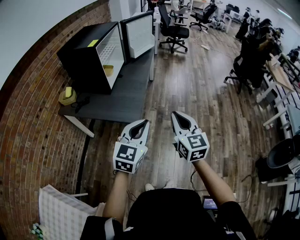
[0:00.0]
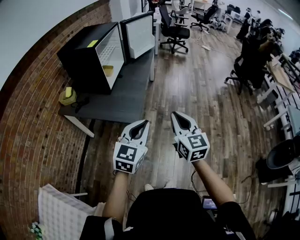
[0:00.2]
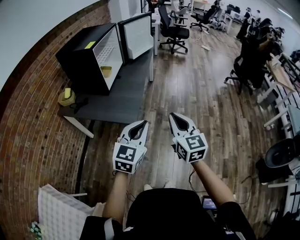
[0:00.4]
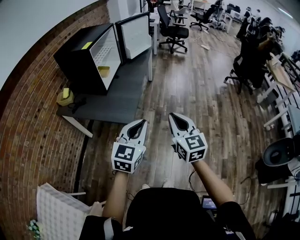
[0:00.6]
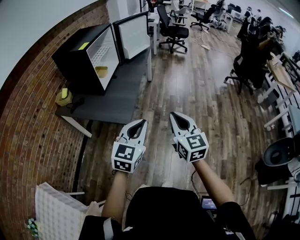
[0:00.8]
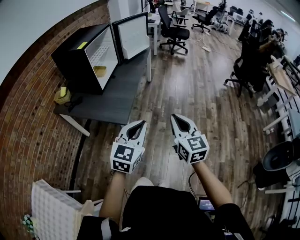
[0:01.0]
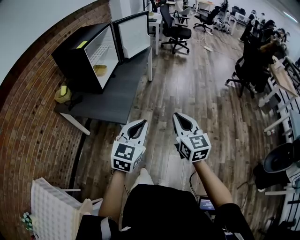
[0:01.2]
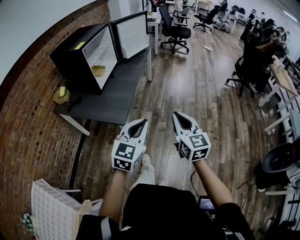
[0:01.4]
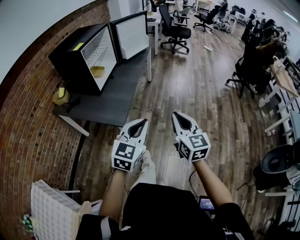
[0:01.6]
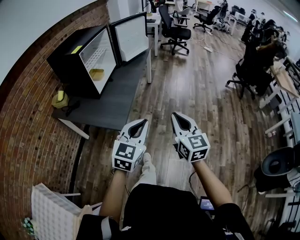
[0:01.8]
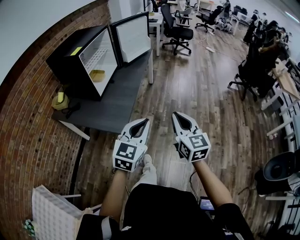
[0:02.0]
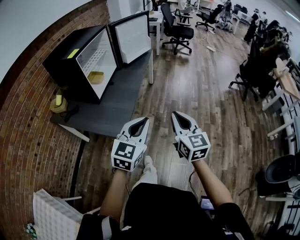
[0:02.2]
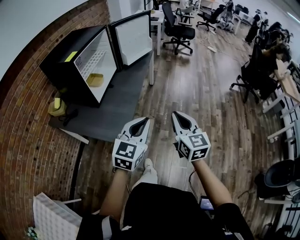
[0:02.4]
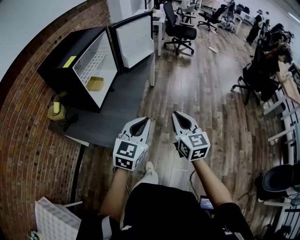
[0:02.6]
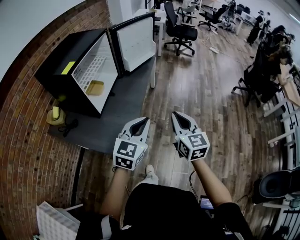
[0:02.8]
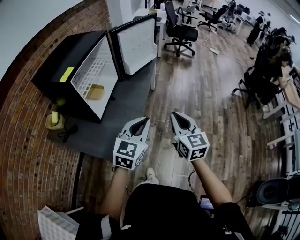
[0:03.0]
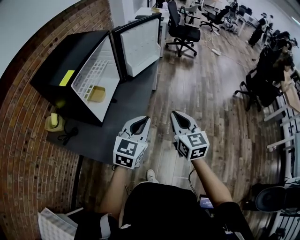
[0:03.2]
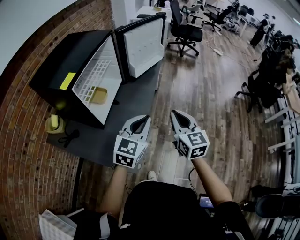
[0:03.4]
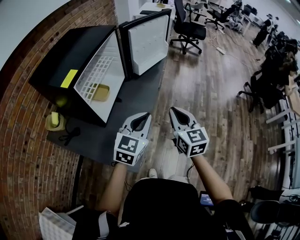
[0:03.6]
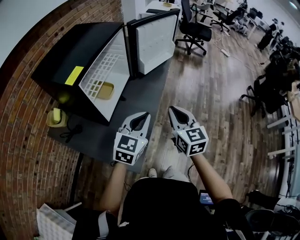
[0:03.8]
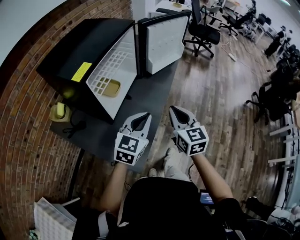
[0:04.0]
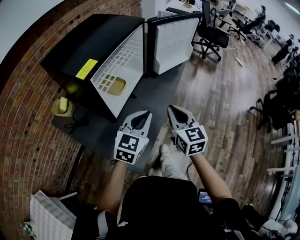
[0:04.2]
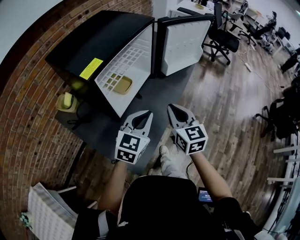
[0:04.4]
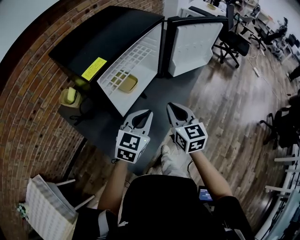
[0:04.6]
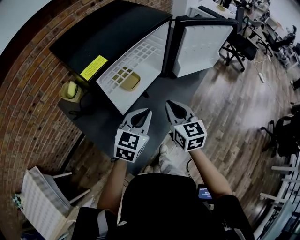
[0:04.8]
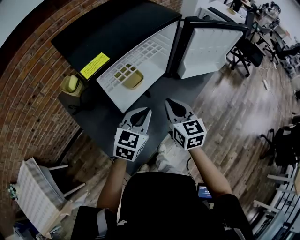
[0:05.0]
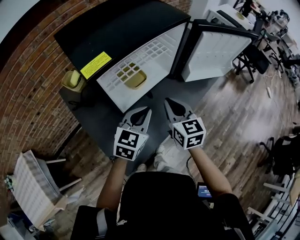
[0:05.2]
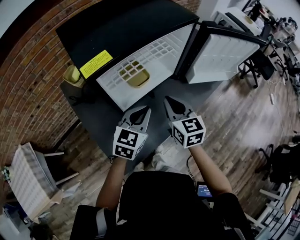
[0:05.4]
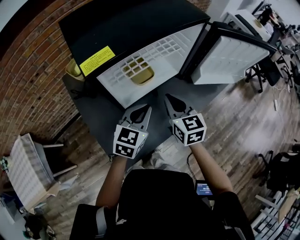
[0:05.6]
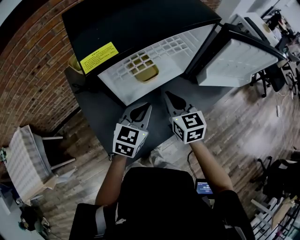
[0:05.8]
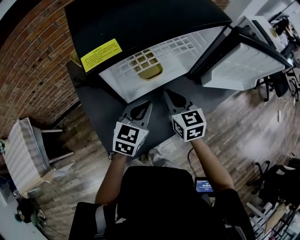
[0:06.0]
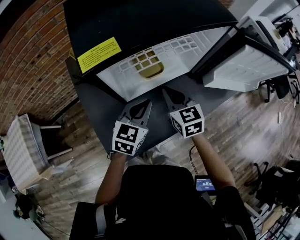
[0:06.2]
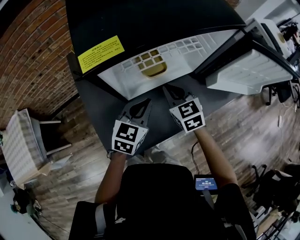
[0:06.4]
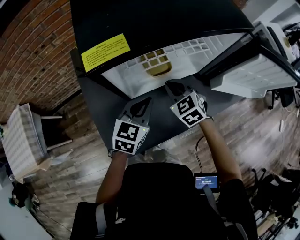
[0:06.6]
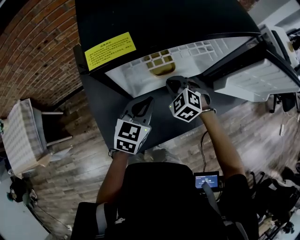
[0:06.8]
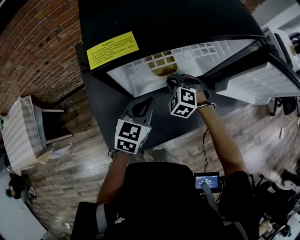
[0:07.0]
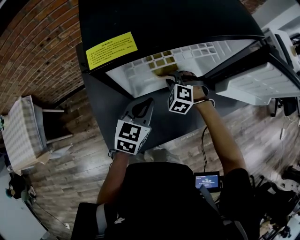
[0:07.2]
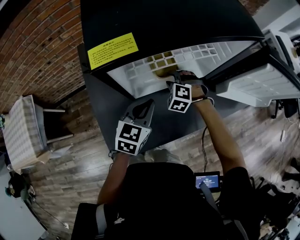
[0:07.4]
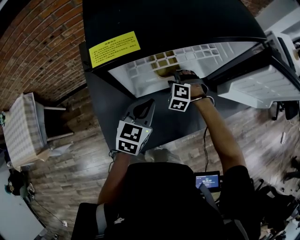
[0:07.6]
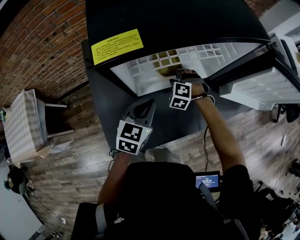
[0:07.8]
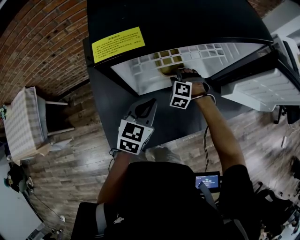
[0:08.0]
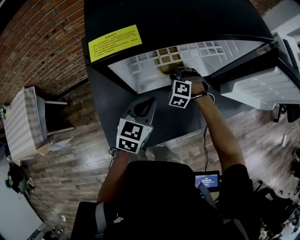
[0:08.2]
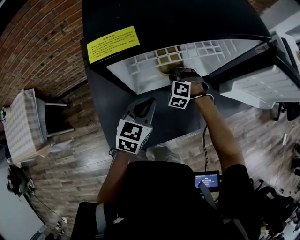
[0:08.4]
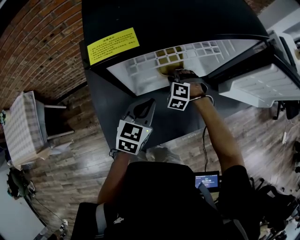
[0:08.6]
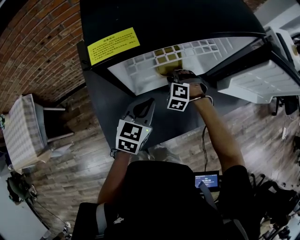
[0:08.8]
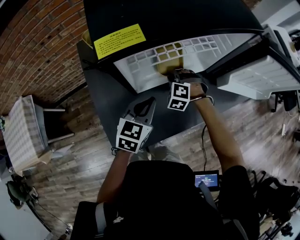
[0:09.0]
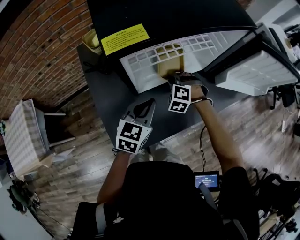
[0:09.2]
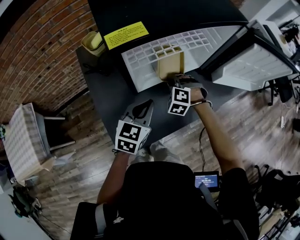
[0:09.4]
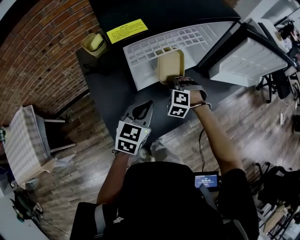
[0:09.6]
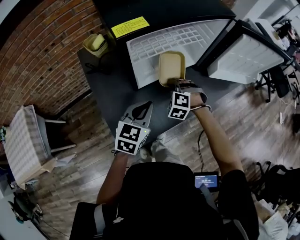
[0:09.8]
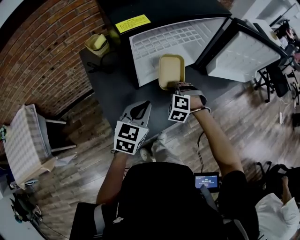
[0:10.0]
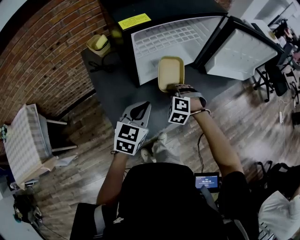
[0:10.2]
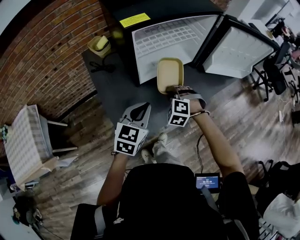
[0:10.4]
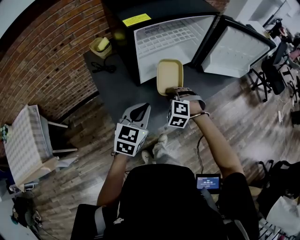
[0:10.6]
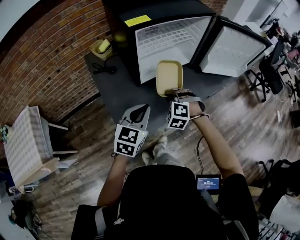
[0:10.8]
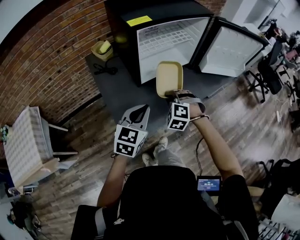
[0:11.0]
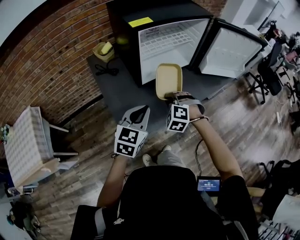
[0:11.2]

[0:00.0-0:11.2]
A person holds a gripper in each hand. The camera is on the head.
0:00.0 to 0:01.6: The grippers both shift to the right by about 15 cm.
0:01.6 to 0:03.2: The two grippers go approximately 35 cm forward.
0:03.2 to 0:04.8: The left gripper shifts by roughly 25 cm, and changes its angle by approximately 30 degrees. The right gripper moves some 30 cm, and changes its angle by approximately 30 degrees.
0:04.8 to 0:06.4: The left gripper changes place by about 15 cm, and changes its angle by about 30 degrees. Meanwhile the right gripper ends up approximately 20 cm from where it was, and swivels approximately 40 degrees.
0:06.4 to 0:08.0: The right gripper is displaced downward and forward by some 15 cm, rotates around the line of its fingers by roughly 60 degrees, counterclockwise from behind, and opens up.
0:08.0 to 0:09.6: The right gripper heads backward and upward, covering about 15 cm, and closes. The left gripper travels backward by roughly 10 cm.
0:09.6 to 0:11.2: Both grippers travel together backward, roughly 20 cm.

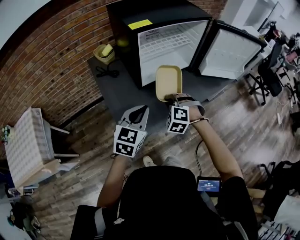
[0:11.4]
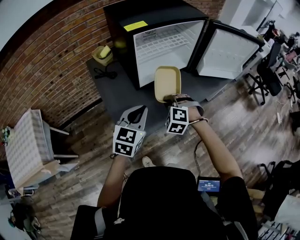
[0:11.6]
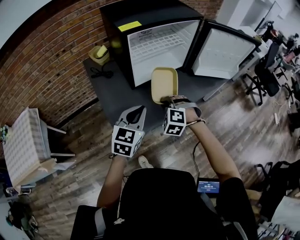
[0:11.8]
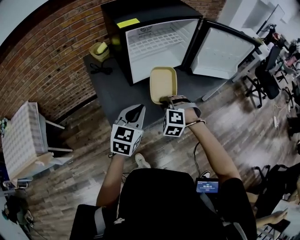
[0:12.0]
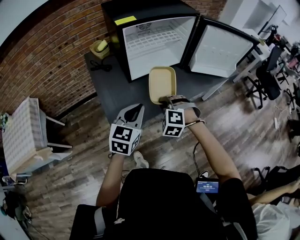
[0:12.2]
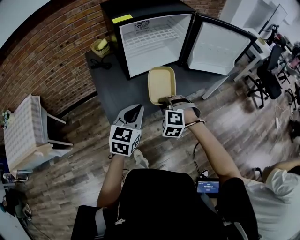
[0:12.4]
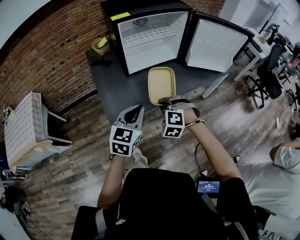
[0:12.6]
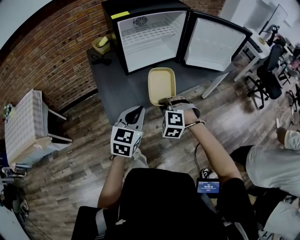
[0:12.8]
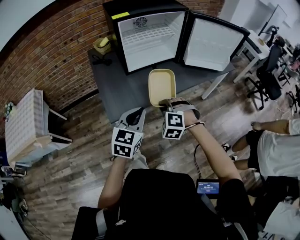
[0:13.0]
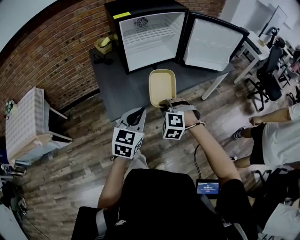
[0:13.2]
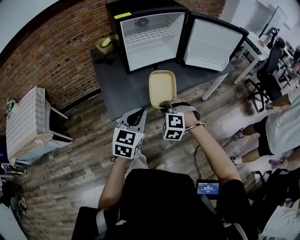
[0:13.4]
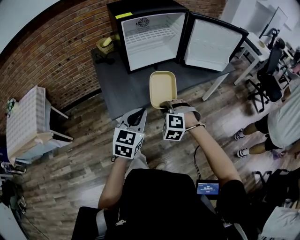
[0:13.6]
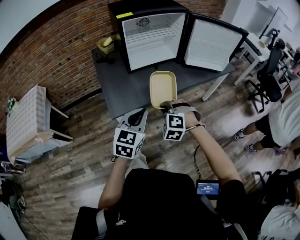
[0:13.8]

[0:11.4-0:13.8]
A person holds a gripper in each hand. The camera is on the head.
0:11.4 to 0:12.6: The right gripper heads backward and to the right, covering about 15 cm. Meanwhile the left gripper is displaced to the right and backward by some 15 cm.
0:12.6 to 0:13.8: The grippers both shift backward by roughly 10 cm.

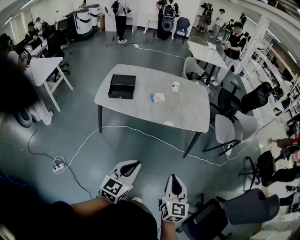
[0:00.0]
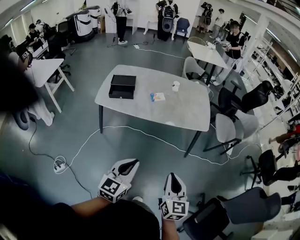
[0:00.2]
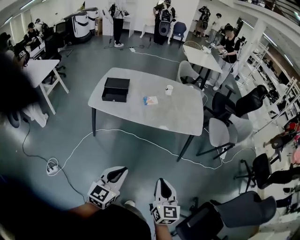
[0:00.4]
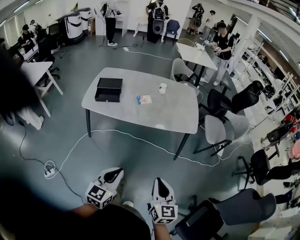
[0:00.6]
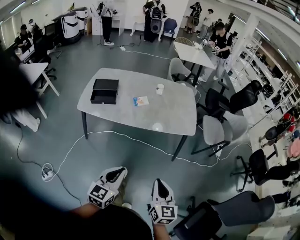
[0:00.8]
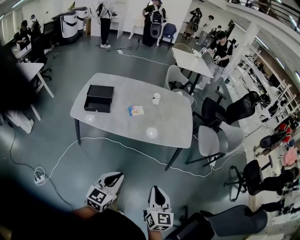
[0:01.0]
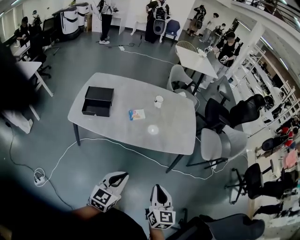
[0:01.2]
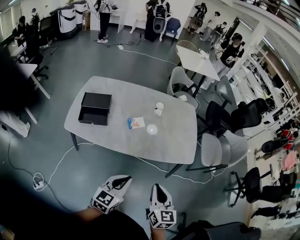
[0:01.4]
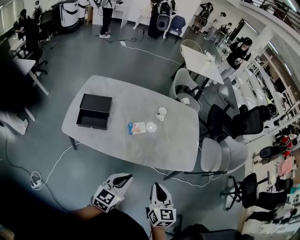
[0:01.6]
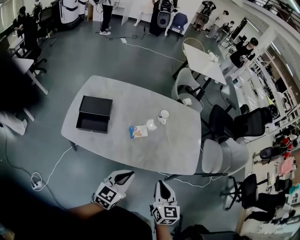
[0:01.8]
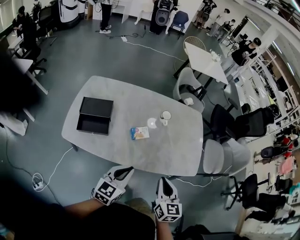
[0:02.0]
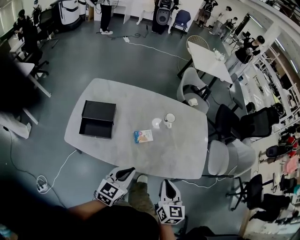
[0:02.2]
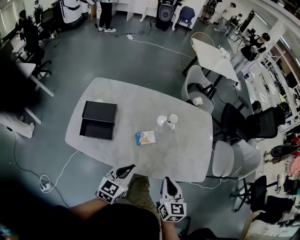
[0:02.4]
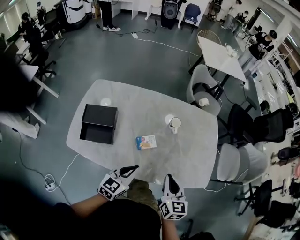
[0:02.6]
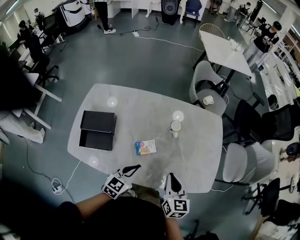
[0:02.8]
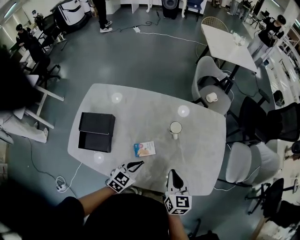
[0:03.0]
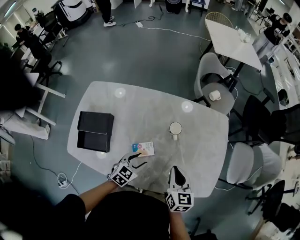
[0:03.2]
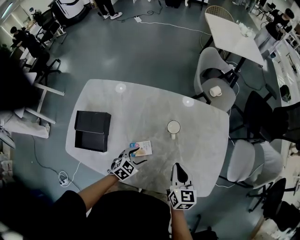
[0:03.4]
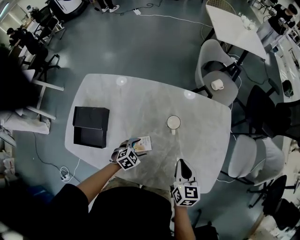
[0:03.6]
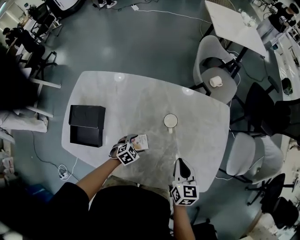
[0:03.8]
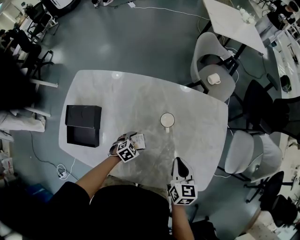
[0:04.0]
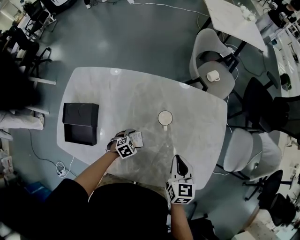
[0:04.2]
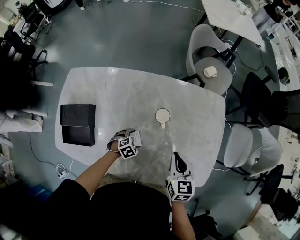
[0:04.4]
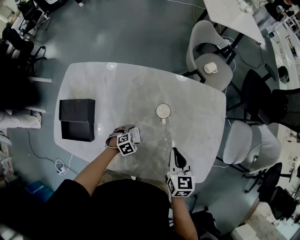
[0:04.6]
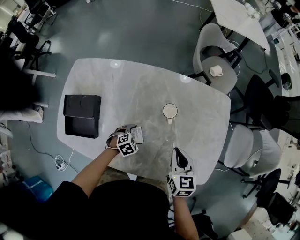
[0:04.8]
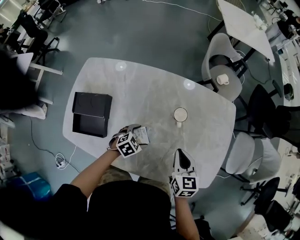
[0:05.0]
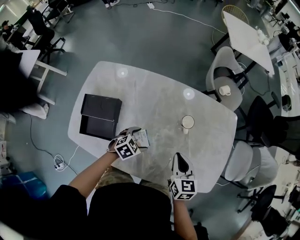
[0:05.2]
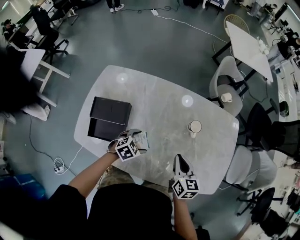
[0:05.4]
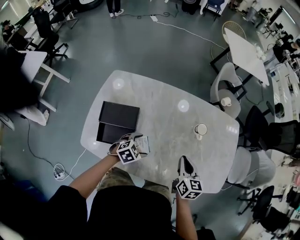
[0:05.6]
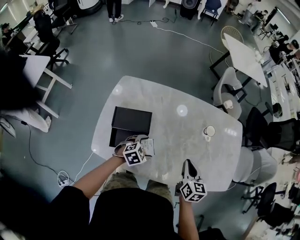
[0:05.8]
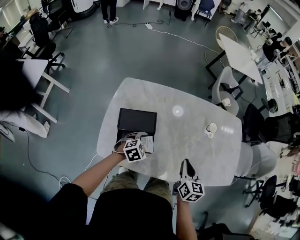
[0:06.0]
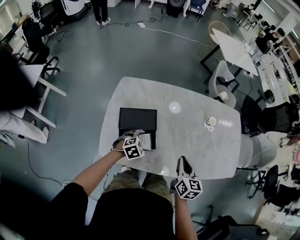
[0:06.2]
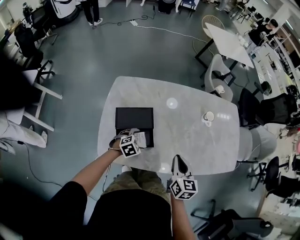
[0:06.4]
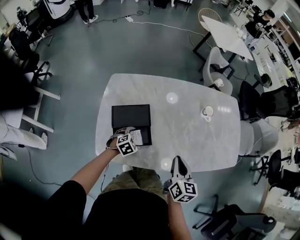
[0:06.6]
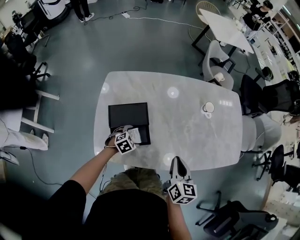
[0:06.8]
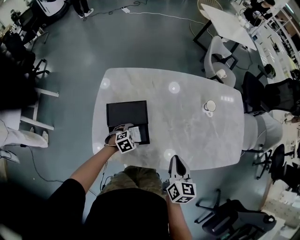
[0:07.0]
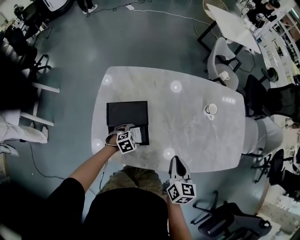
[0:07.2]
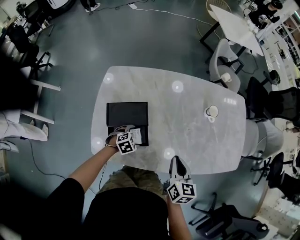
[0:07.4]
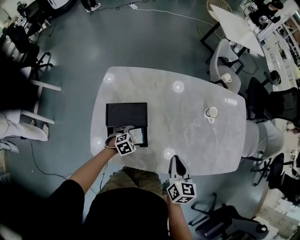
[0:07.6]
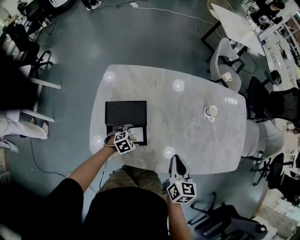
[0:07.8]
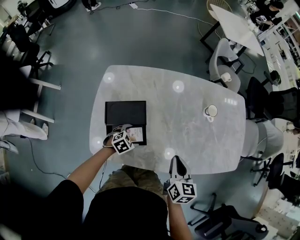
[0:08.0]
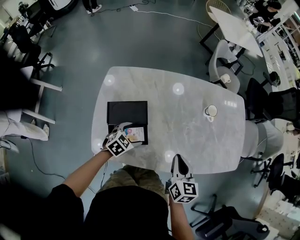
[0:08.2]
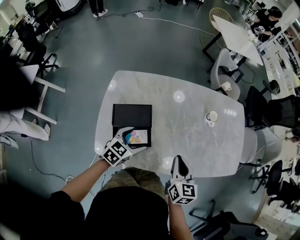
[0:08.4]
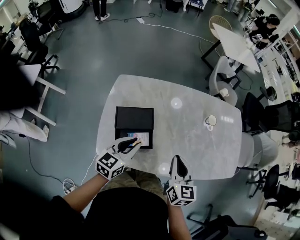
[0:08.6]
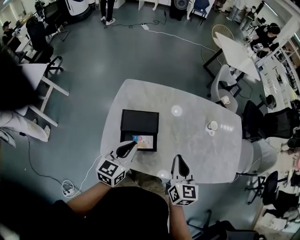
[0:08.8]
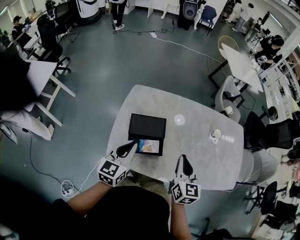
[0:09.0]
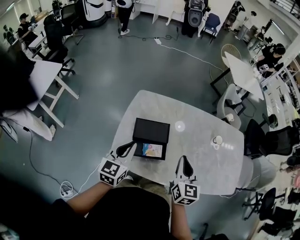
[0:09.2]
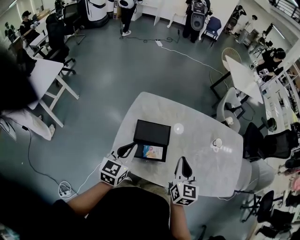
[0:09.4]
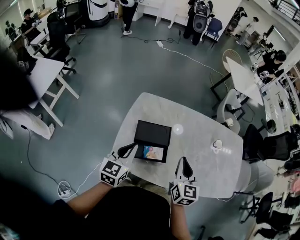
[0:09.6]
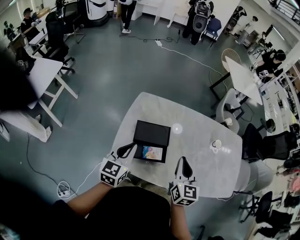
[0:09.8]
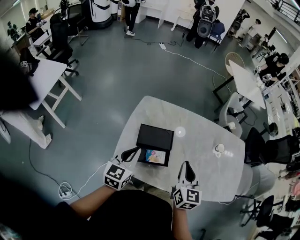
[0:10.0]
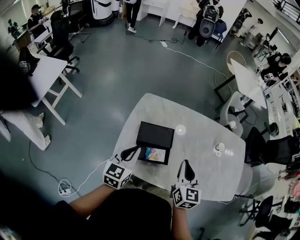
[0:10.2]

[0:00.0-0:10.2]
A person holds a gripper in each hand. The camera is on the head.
0:00.0 to 0:01.4: The two grippers go about 25 cm forward.
0:01.4 to 0:03.0: Both grippers travel together forward, about 40 cm. The left gripper rotates some 20 degrees.
0:03.0 to 0:04.4: The left gripper travels downward by some 25 cm, points its fingers about 40 degrees further downward, and opens up; the right gripper shifts about 15 cm forward and downward.
0:04.4 to 0:05.8: The right gripper moves to the left and backward, about 30 cm; the left gripper heads to the left, upward and backward, covering some 30 cm, and changes its angle by about 20 degrees.
0:05.8 to 0:07.2: The left gripper shifts approximately 15 cm downward and to the left, while the right gripper is displaced backward and to the left by about 10 cm.
0:07.2 to 0:08.8: The right gripper is displaced upward by some 10 cm; the left gripper travels upward by roughly 30 cm, tips its fingers upward by approximately 50 degrees, and closes up.
0:08.8 to 0:10.2: The two grippers go roughly 10 cm to the left.
